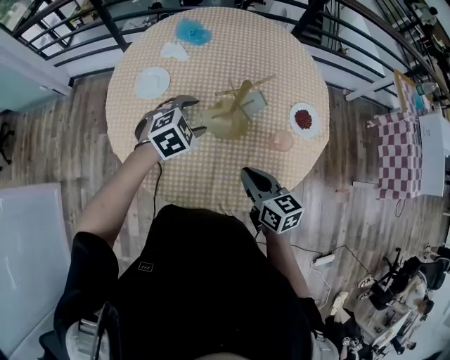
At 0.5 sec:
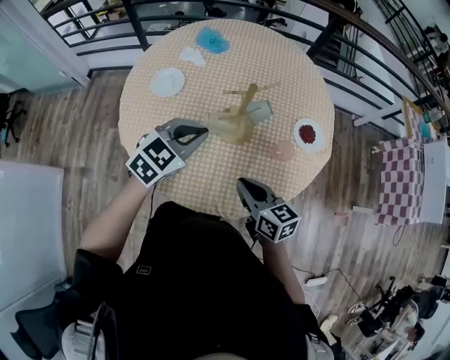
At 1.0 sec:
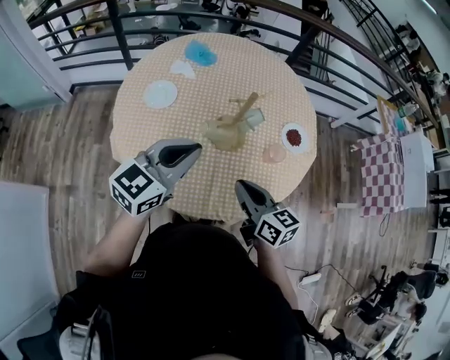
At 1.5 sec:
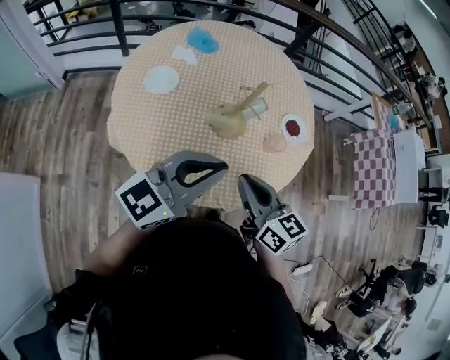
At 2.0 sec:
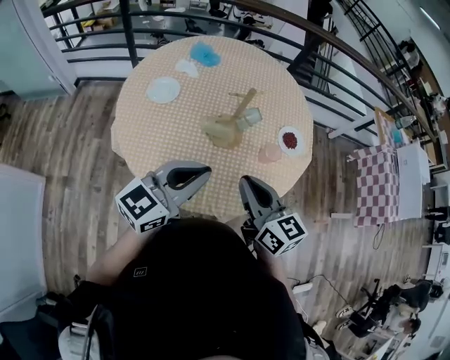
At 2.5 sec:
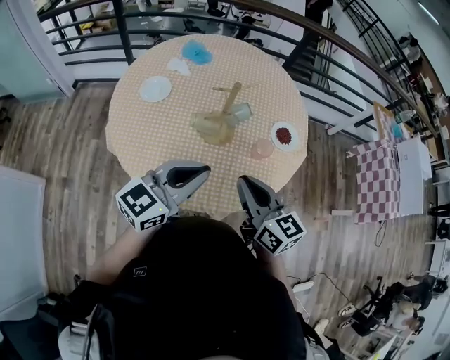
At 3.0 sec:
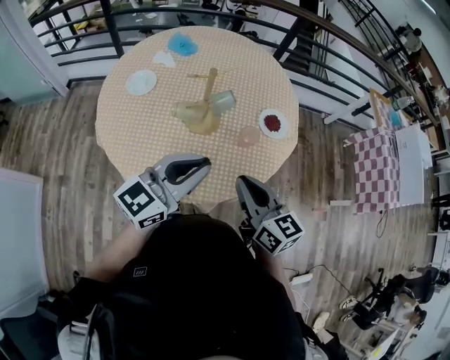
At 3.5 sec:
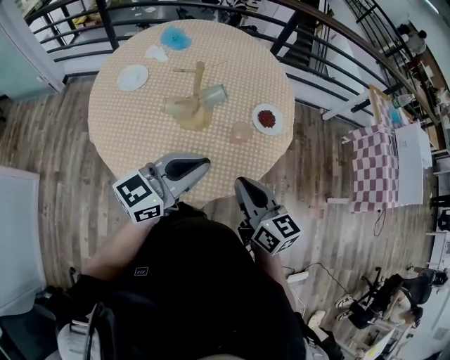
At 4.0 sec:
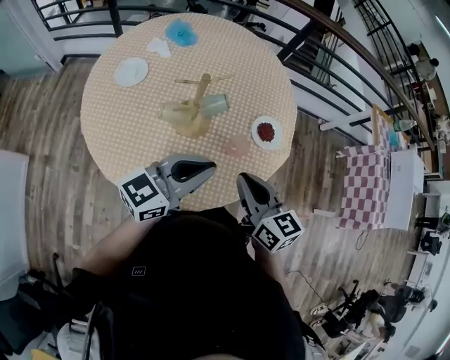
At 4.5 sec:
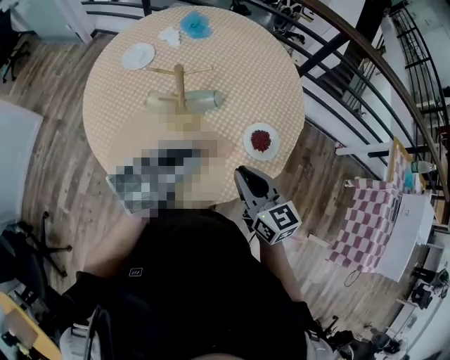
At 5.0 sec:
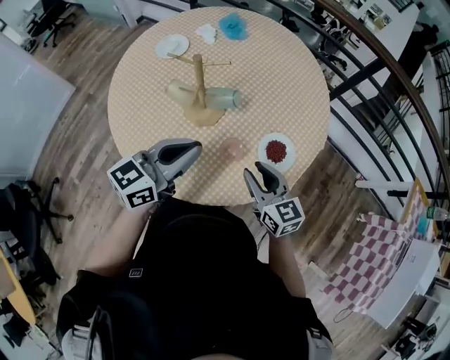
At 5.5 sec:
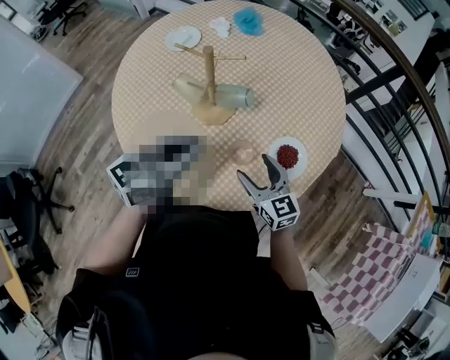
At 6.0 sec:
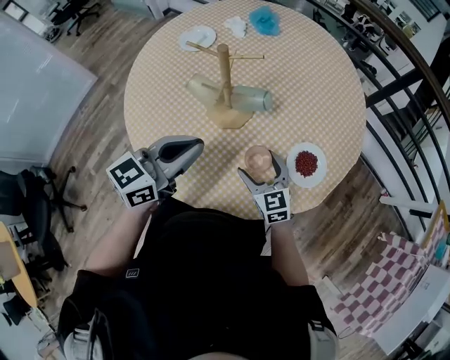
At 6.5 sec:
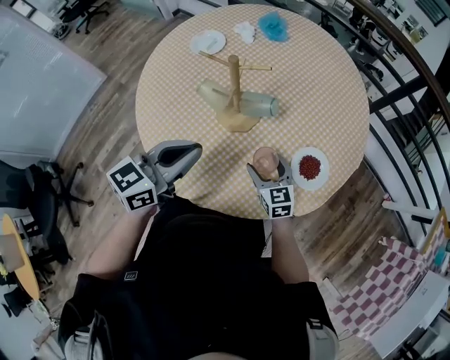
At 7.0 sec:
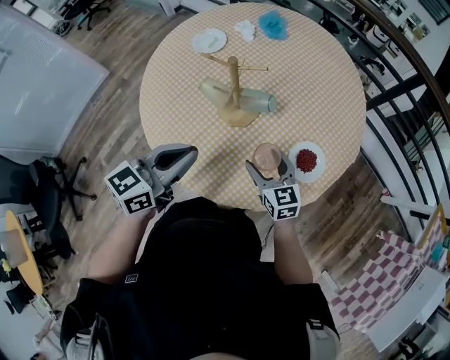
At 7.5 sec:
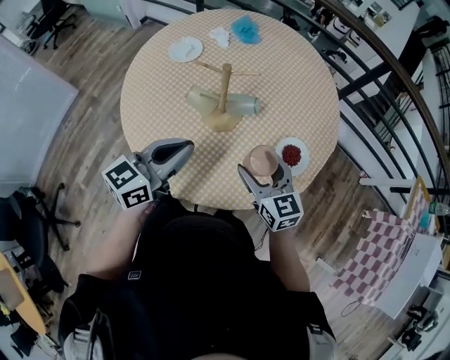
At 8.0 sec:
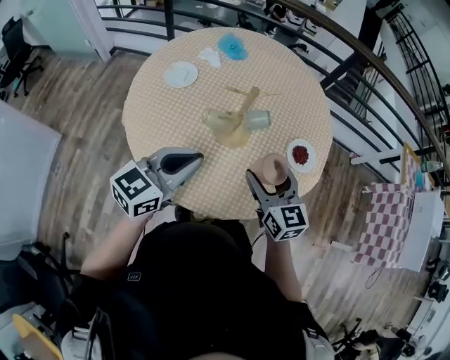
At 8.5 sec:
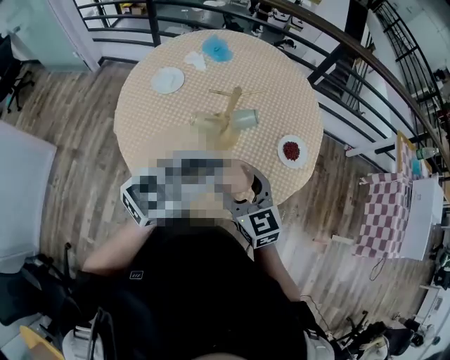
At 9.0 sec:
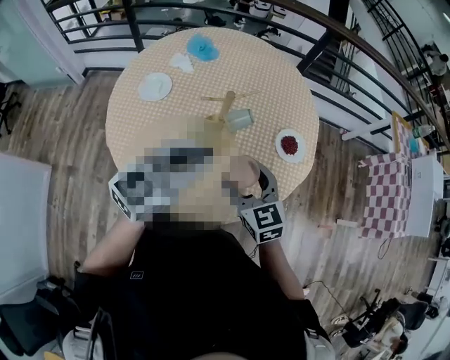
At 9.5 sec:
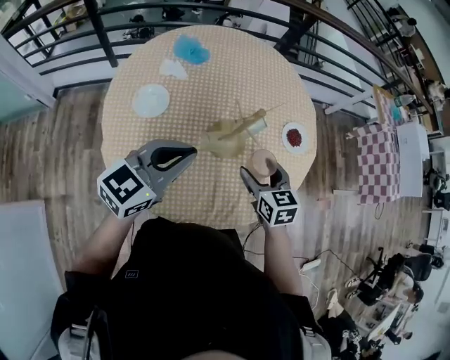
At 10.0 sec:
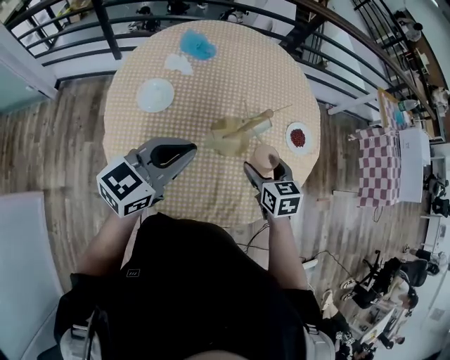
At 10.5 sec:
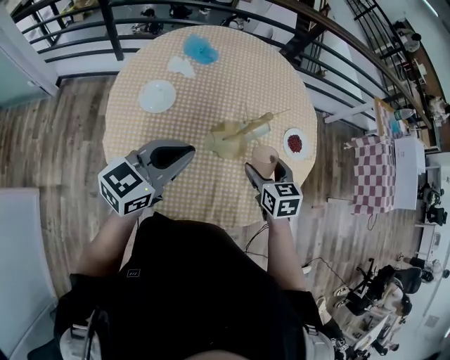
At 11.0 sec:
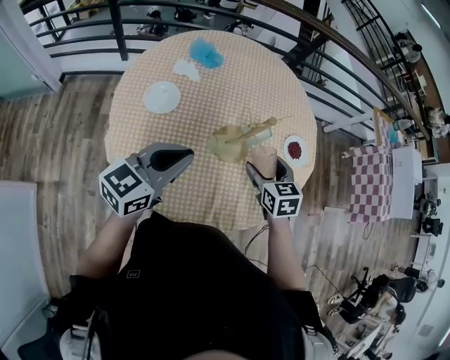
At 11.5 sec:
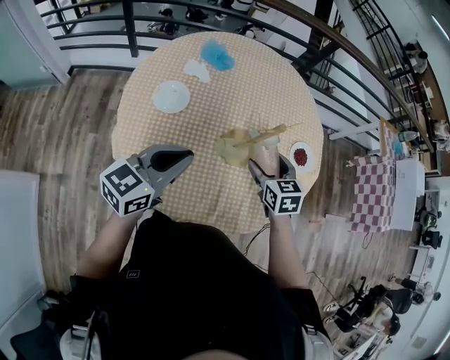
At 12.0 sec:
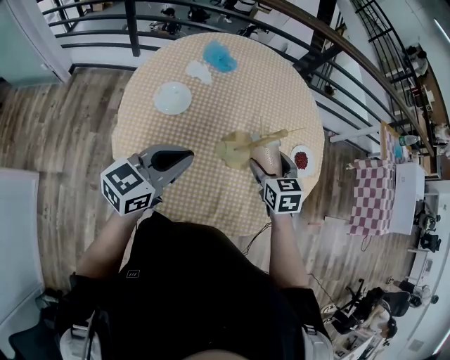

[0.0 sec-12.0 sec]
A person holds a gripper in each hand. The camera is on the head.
0.0 sec to 2.0 sec: The right gripper shifts approximately 15 cm upward and backward. Meanwhile the left gripper shifts some 25 cm backward and upward, tips its fingers upward by approximately 50 degrees, and closes its fingers.
2.0 sec to 4.0 sec: Both grippers travel together to the right and forward, roughly 15 cm.
4.0 sec to 6.0 sec: The left gripper heads downward, covering about 10 cm, and changes its angle by roughly 40 degrees. The right gripper shifts some 25 cm downward, swivels roughly 40 degrees, and opens up.
6.0 sec to 8.0 sec: The left gripper shifts by some 15 cm, and swivels about 20 degrees; the right gripper heads upward, covering approximately 20 cm, and changes its angle by roughly 30 degrees.
8.0 sec to 10.0 sec: The right gripper heads downward, to the left and forward, covering roughly 10 cm, and swivels about 30 degrees. The left gripper shifts some 15 cm to the left and forward, and turns by about 20 degrees.
10.0 sec to 12.0 sec: The left gripper shifts by approximately 5 cm. Meanwhile the right gripper ends up approximately 5 cm from where it was.

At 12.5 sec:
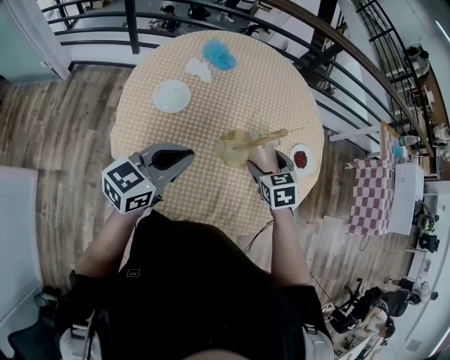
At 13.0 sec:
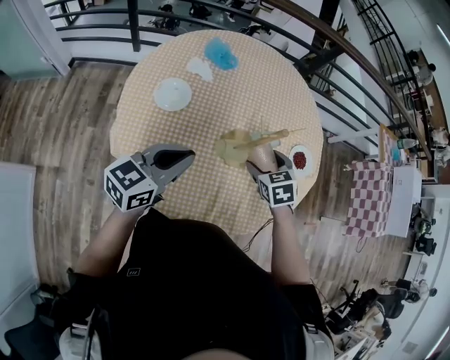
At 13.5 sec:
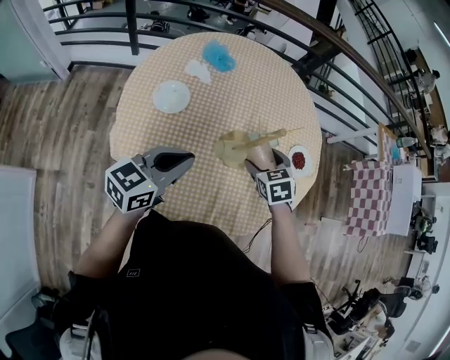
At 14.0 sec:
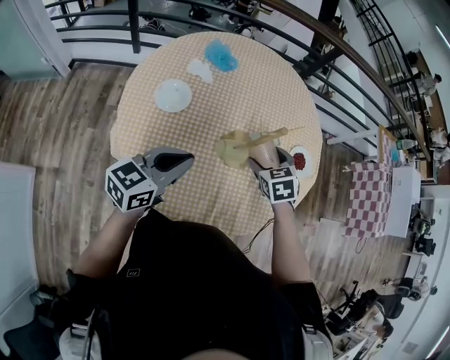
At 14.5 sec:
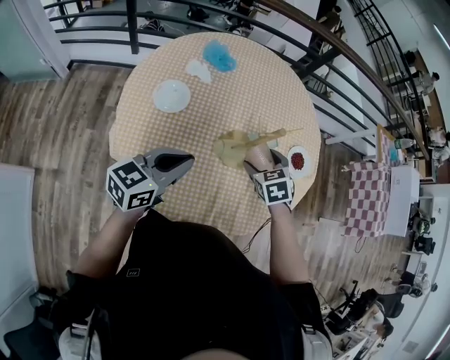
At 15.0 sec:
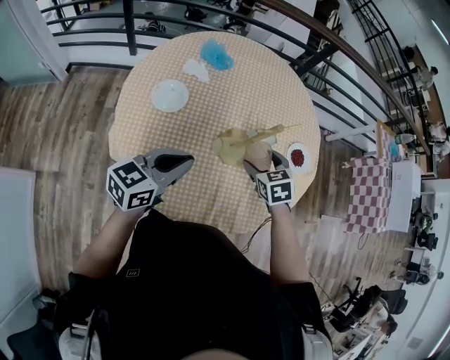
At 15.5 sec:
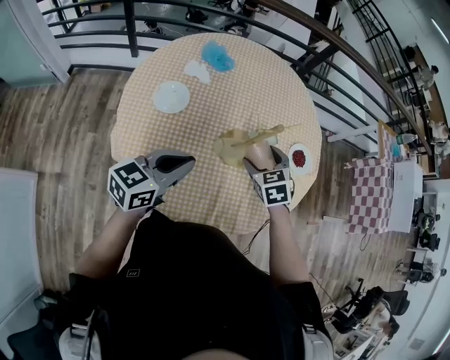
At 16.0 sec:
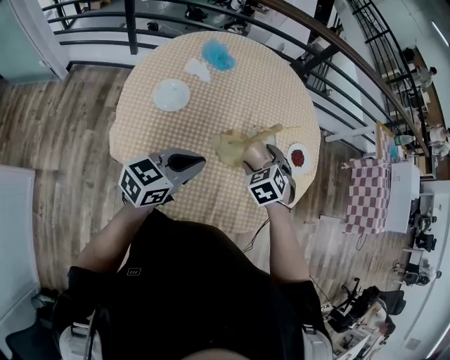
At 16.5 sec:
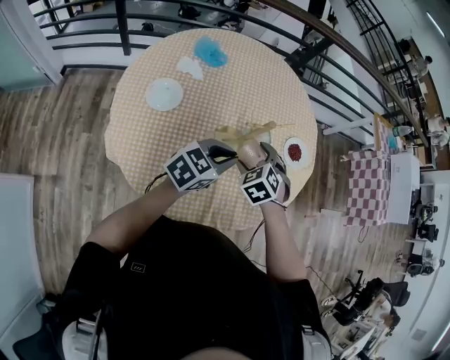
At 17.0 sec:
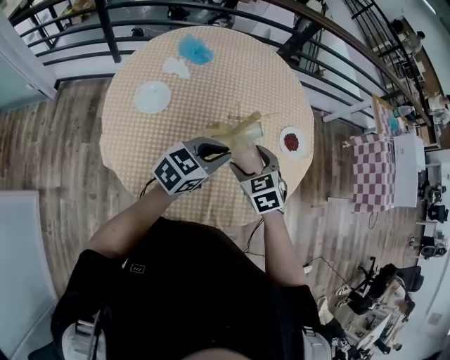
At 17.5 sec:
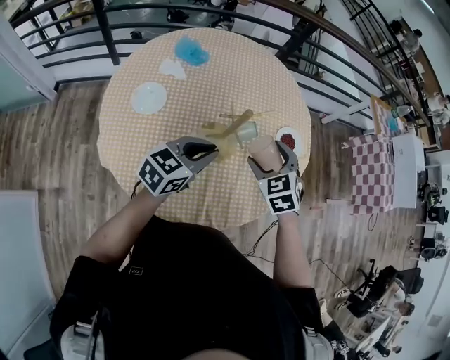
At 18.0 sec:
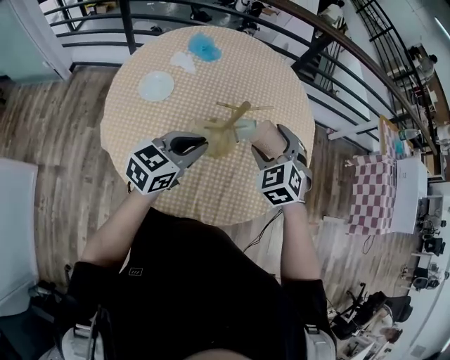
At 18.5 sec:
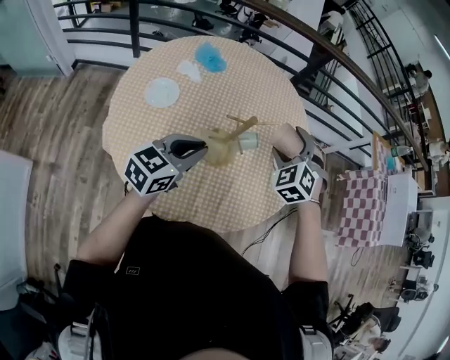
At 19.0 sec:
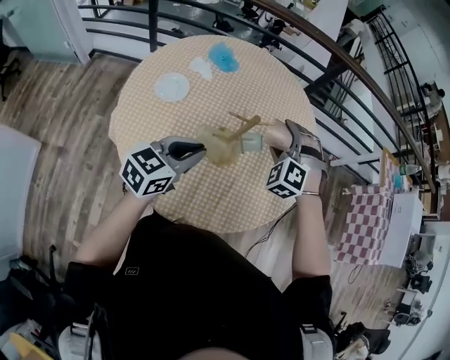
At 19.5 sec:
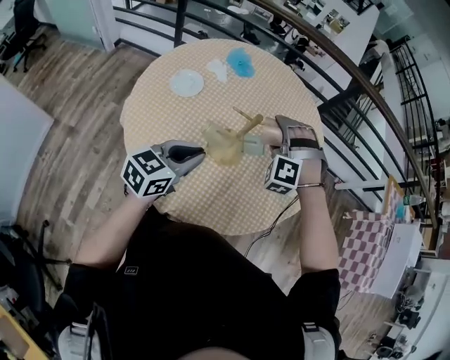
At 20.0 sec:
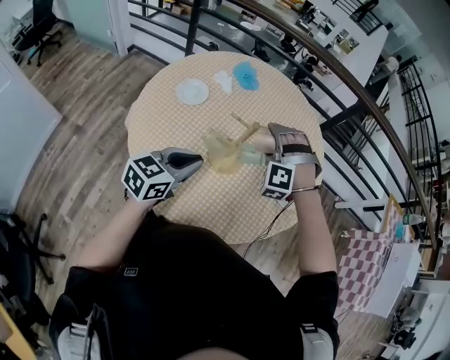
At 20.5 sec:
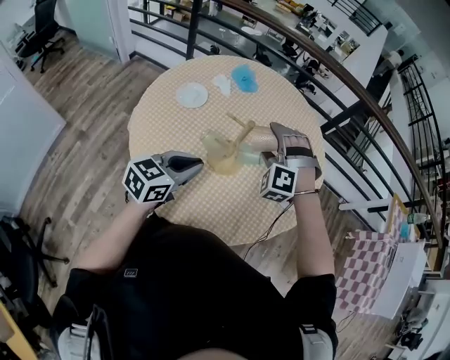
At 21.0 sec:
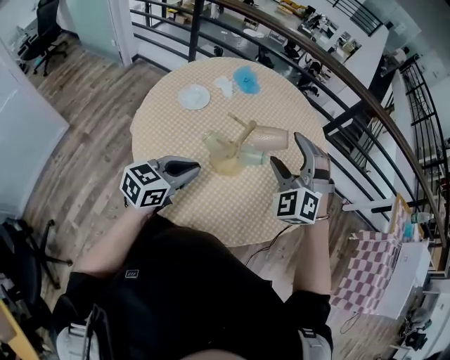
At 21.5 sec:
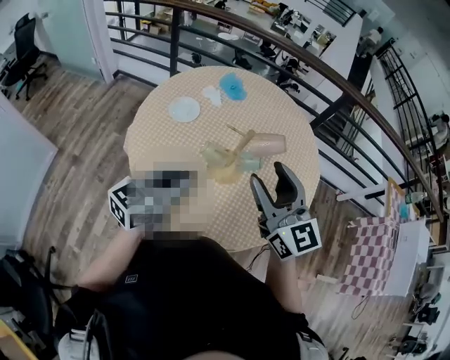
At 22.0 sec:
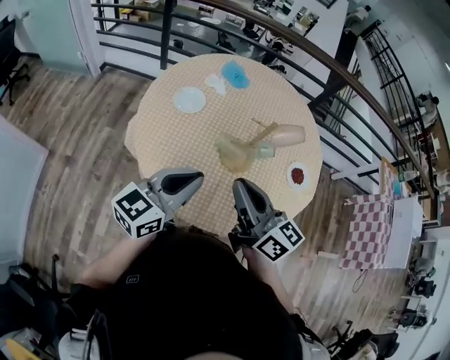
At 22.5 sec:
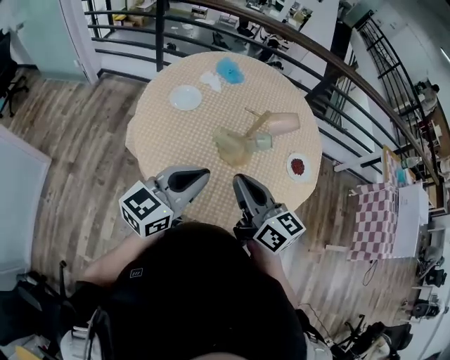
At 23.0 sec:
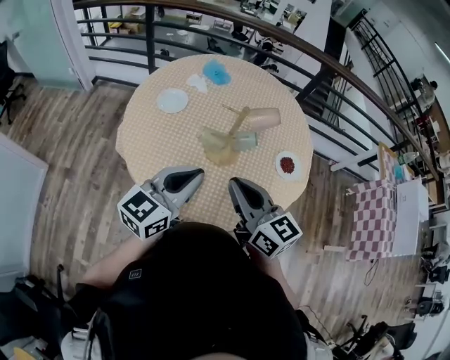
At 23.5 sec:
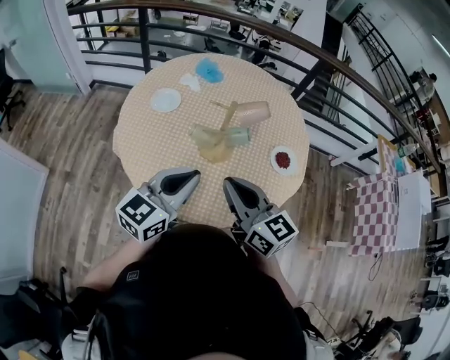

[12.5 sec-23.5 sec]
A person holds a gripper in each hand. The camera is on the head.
12.5 sec to 14.5 sec: The grippers move only a little.
14.5 sec to 16.0 sec: There are only small adjustments of the grippers.
16.0 sec to 18.0 sec: The right gripper heads upward and to the right, covering approximately 10 cm, and turns by some 20 degrees. Meanwhile the left gripper goes about 10 cm to the right and forward.
18.0 sec to 20.0 sec: The left gripper swivels about 20 degrees, while the right gripper changes place by about 5 cm, and twists approximately 60 degrees counterclockwise, seen from behind.
20.0 sec to 21.5 sec: The left gripper is displaced upward by about 5 cm, while the right gripper heads backward and upward, covering roughly 20 cm, and twists about 90 degrees clockwise, seen from behind.
21.5 sec to 23.5 sec: The left gripper shifts about 5 cm backward. The right gripper goes about 10 cm backward and downward, moves some 10 cm to the left and comes back, and closes its fingers.

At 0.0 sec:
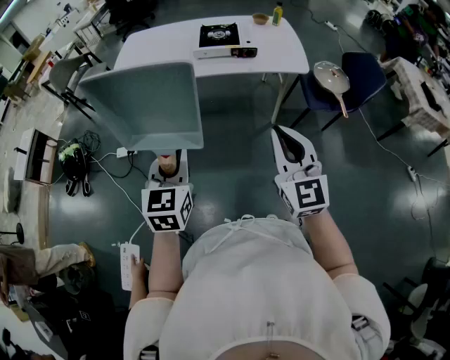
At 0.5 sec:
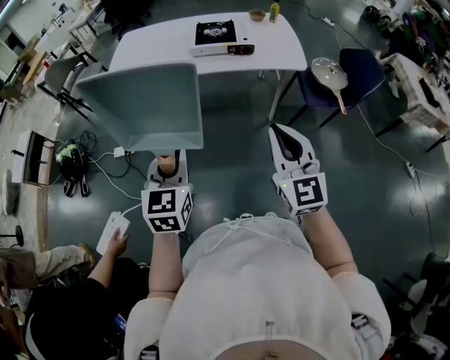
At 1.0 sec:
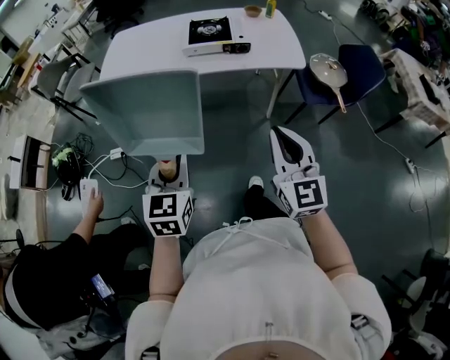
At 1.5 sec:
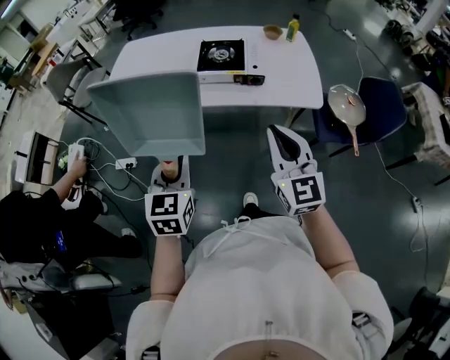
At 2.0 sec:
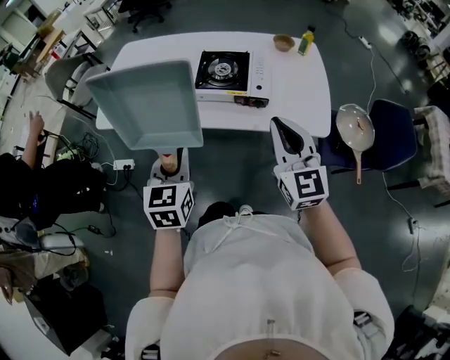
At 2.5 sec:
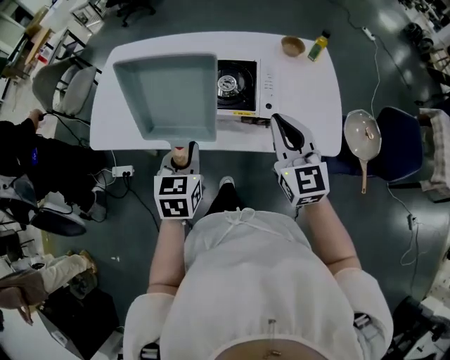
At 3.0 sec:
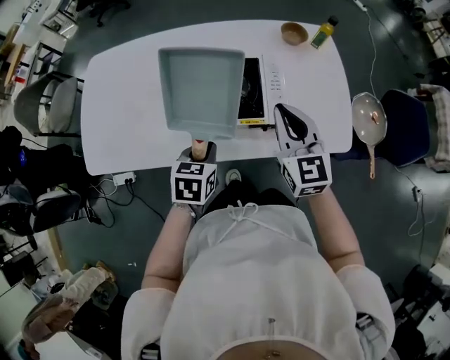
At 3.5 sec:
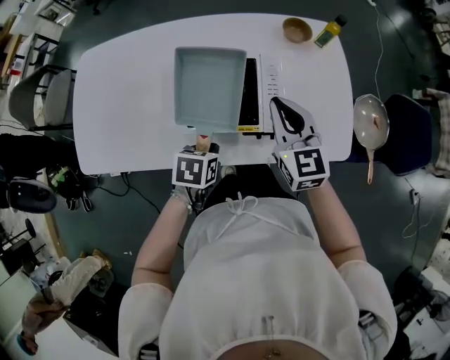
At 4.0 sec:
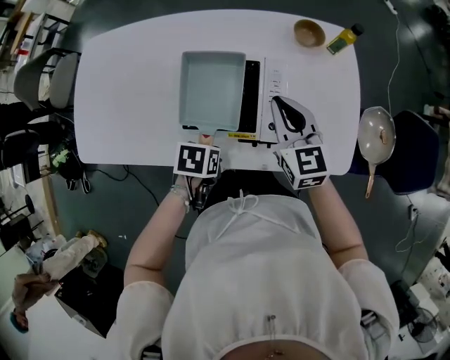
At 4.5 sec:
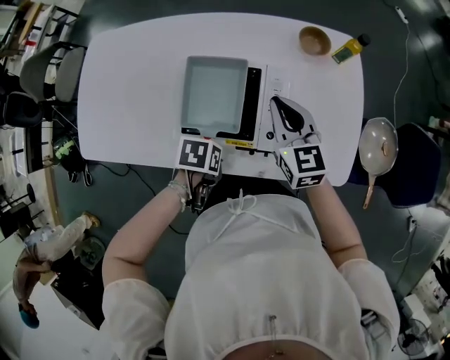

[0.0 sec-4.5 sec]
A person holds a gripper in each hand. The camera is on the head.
0.0 sec to 2.0 sec: Both grippers move forward, approximately 40 cm.
2.0 sec to 4.5 sec: The left gripper moves approximately 35 cm, and points its fingers roughly 50 degrees further downward, while the right gripper moves about 40 cm, and changes its angle by roughly 20 degrees.
